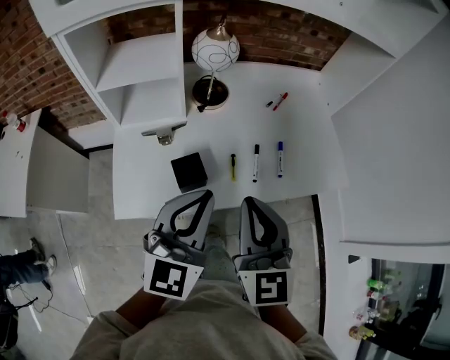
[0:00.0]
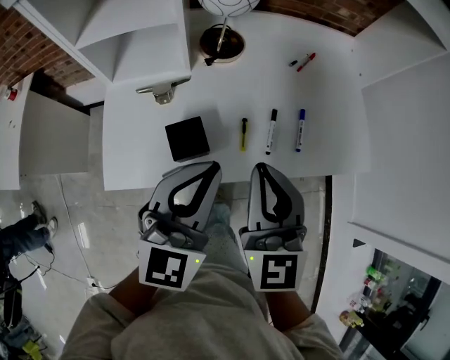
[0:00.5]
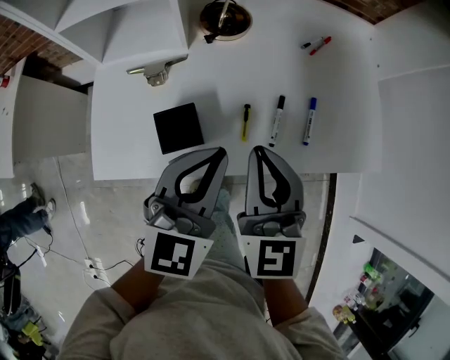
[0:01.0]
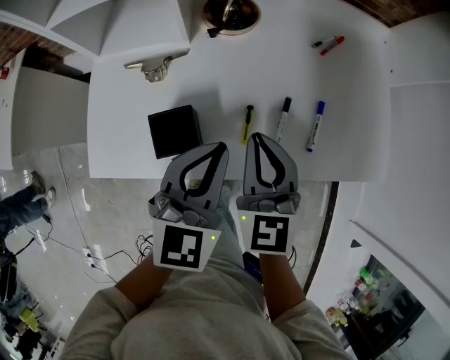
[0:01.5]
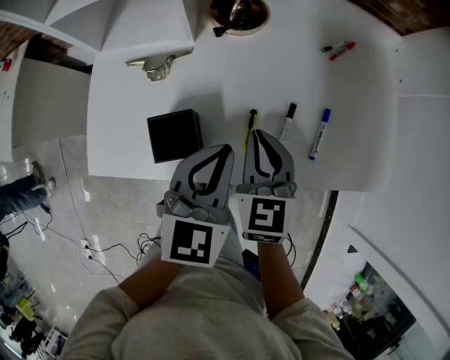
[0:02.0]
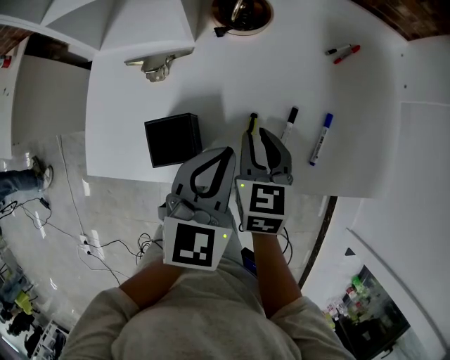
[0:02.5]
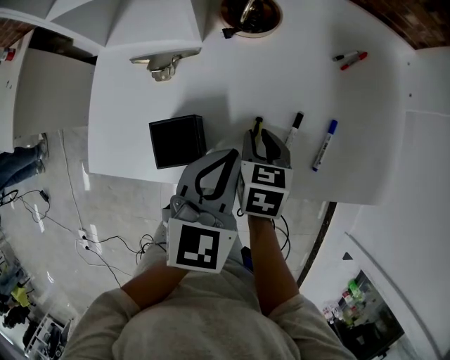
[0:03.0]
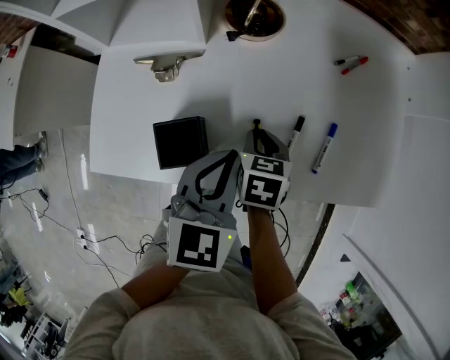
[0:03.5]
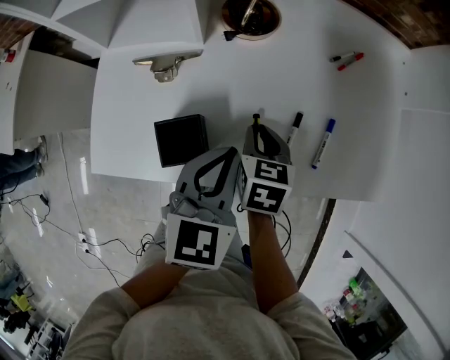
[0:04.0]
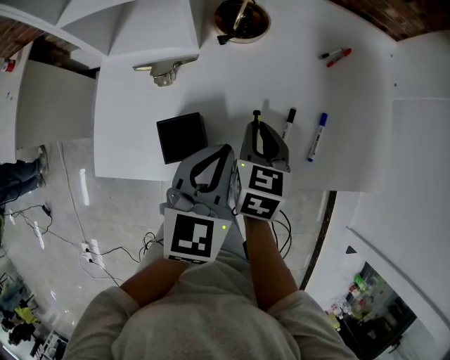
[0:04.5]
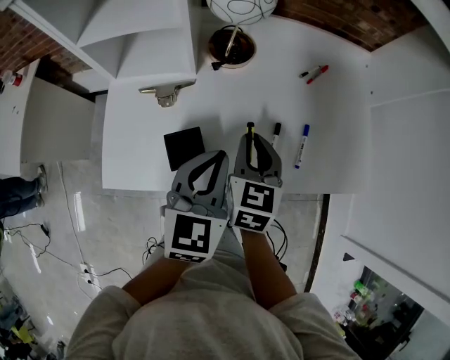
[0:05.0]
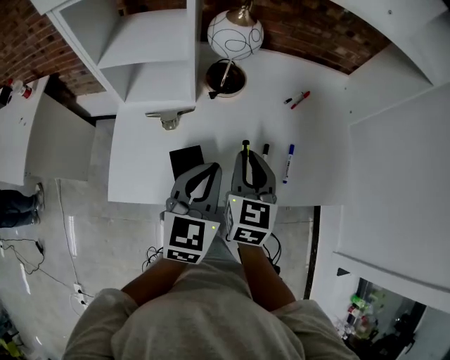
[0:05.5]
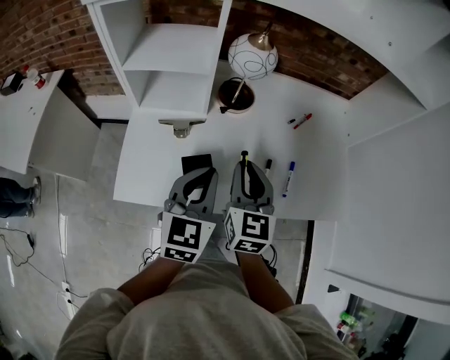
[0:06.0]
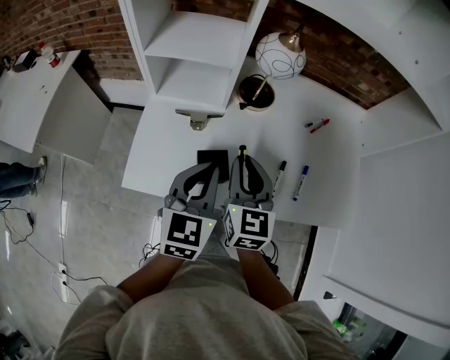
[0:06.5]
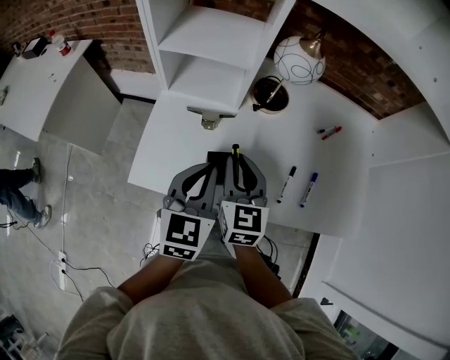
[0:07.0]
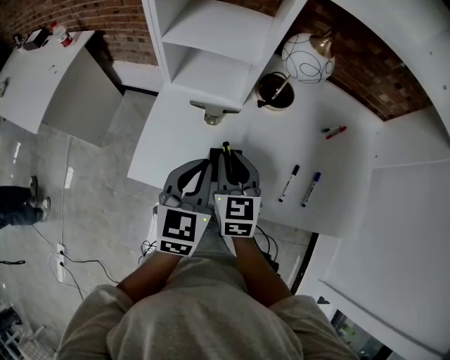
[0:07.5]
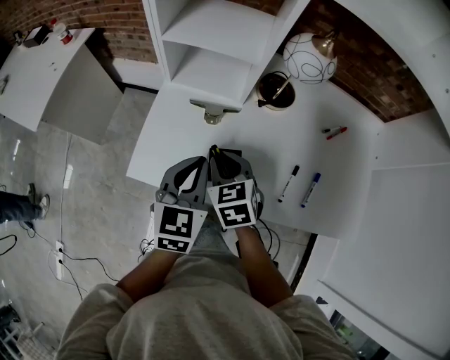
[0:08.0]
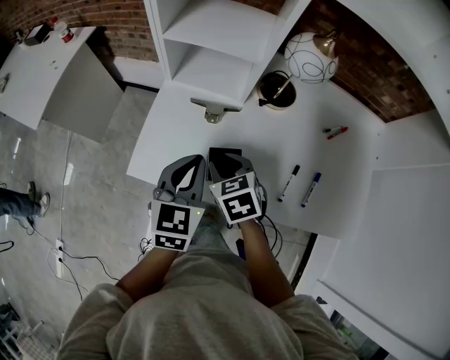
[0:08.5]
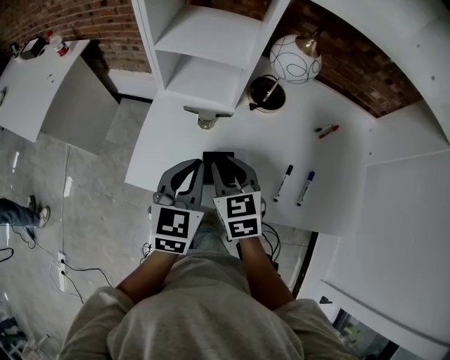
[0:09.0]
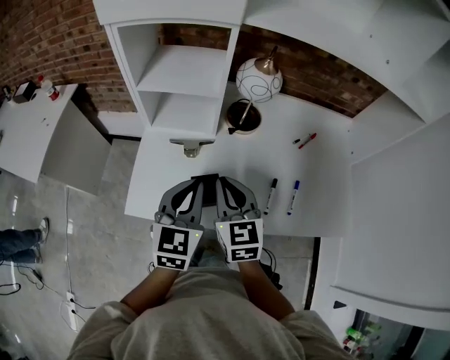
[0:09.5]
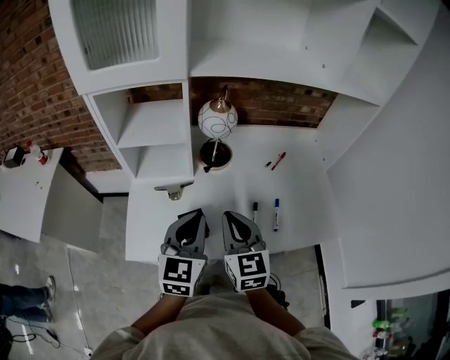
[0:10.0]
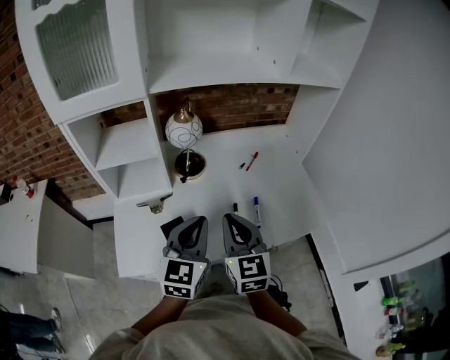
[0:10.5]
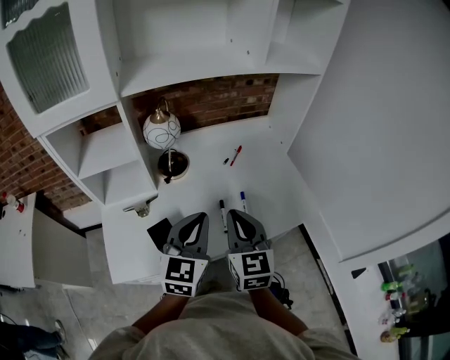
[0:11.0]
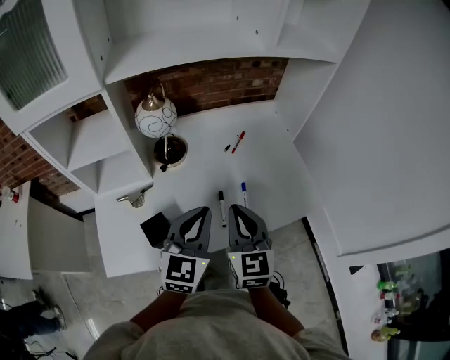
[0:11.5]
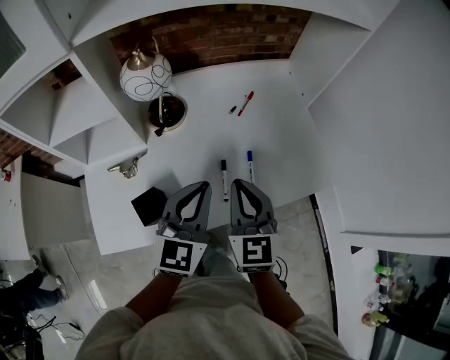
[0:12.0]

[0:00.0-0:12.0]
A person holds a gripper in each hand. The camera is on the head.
0:00.0 to 0:02.0: The grippers both shift downward and forward by roughly 25 cm. The left gripper changes its angle by about 30 degrees; the right gripper rotates about 30 degrees.
0:02.0 to 0:04.0: The right gripper goes some 5 cm downward, and rotates approximately 30 degrees.
0:04.0 to 0:06.0: The right gripper travels upward by roughly 20 cm, and points its fingers roughly 30 degrees further upward. The left gripper travels upward and to the left by some 15 cm.
0:06.0 to 0:08.0: The left gripper goes about 10 cm to the left; the right gripper heads to the left and downward, covering approximately 20 cm, and swivels roughly 40 degrees.
0:08.0 to 0:10.0: The left gripper shifts about 10 cm upward, and turns by roughly 20 degrees, while the right gripper heads upward, covering approximately 15 cm, and angles its fingers upward, by about 30 degrees.
0:10.0 to 0:12.0: The grippers both shift to the right and forward by approximately 15 cm.

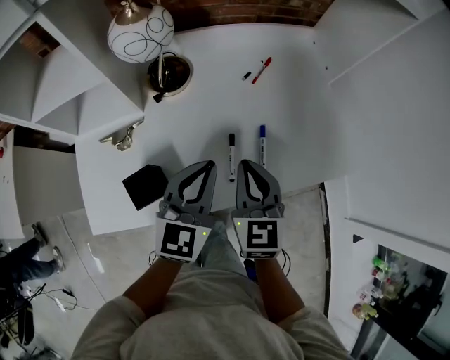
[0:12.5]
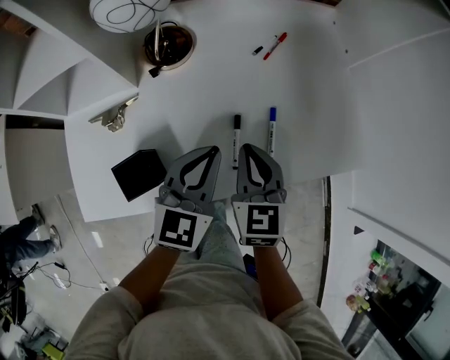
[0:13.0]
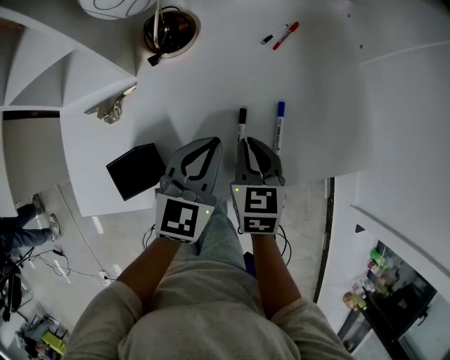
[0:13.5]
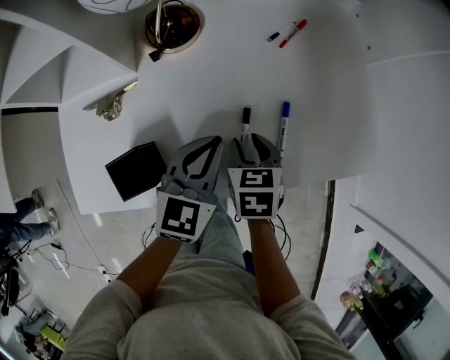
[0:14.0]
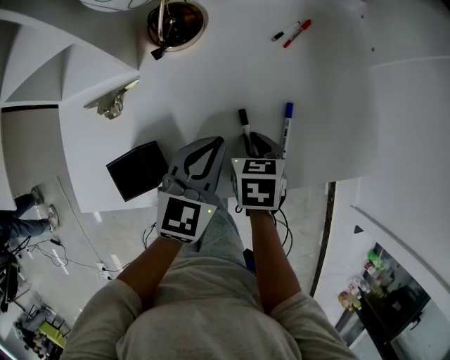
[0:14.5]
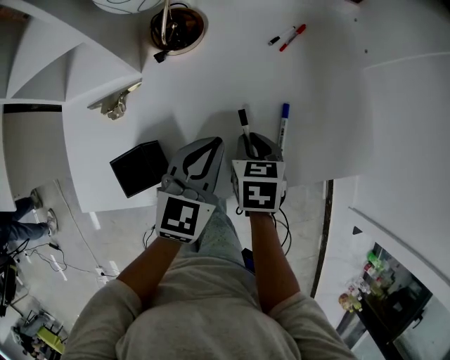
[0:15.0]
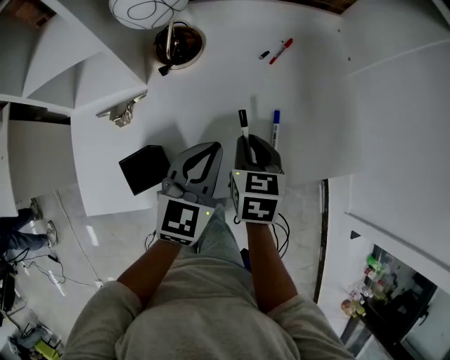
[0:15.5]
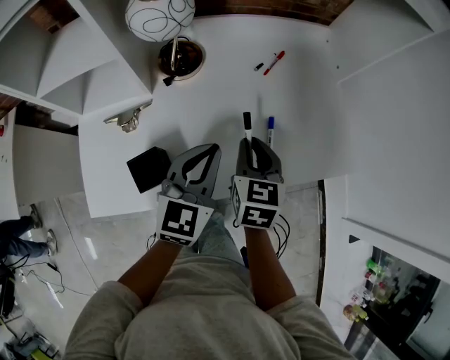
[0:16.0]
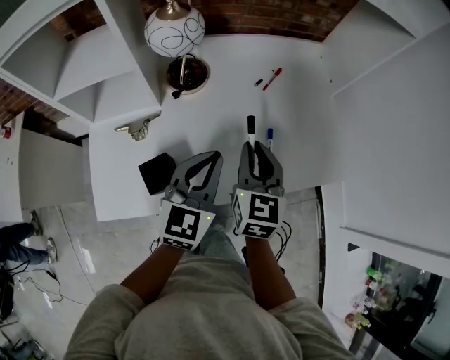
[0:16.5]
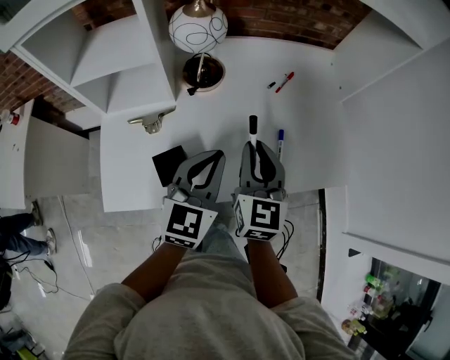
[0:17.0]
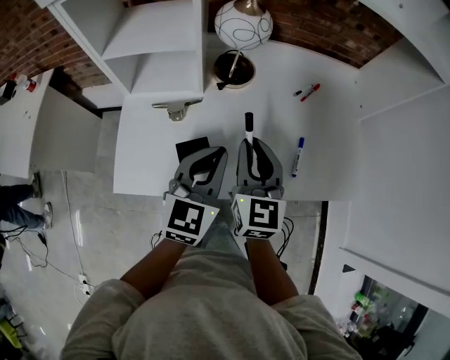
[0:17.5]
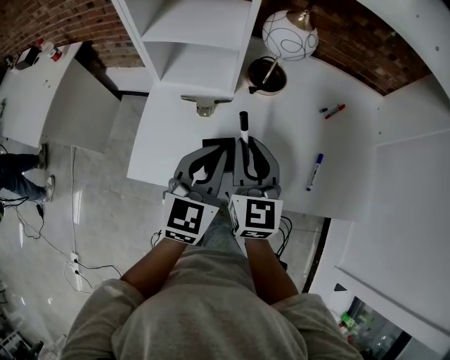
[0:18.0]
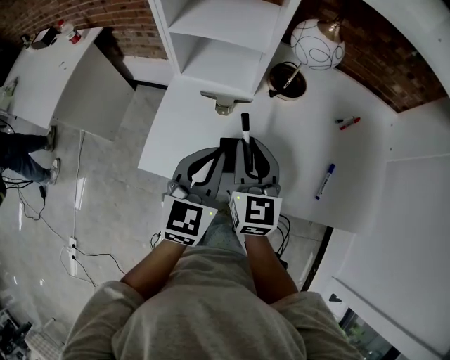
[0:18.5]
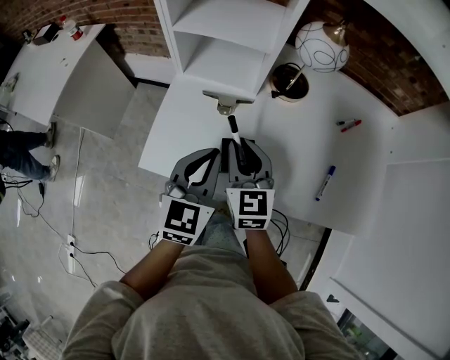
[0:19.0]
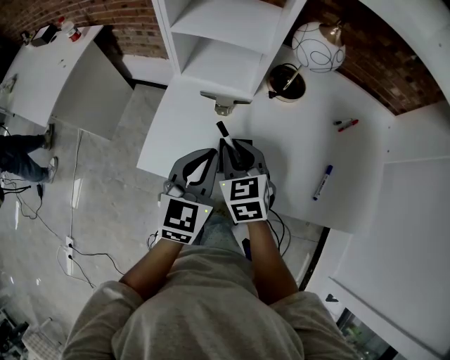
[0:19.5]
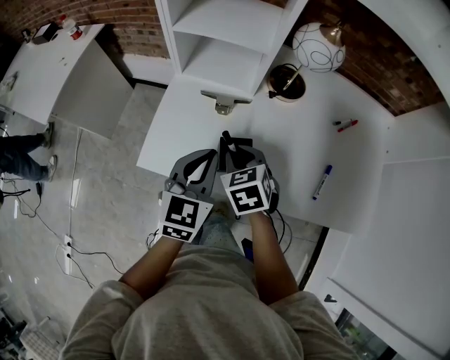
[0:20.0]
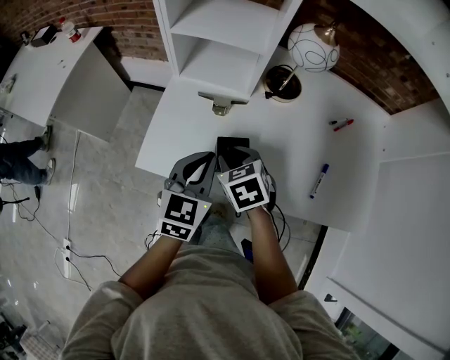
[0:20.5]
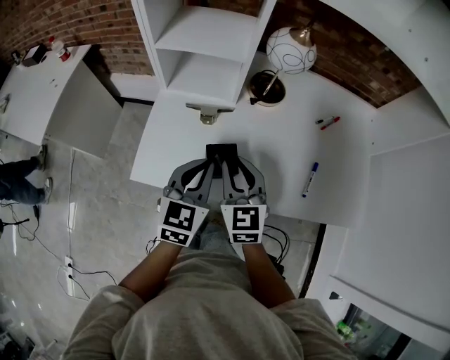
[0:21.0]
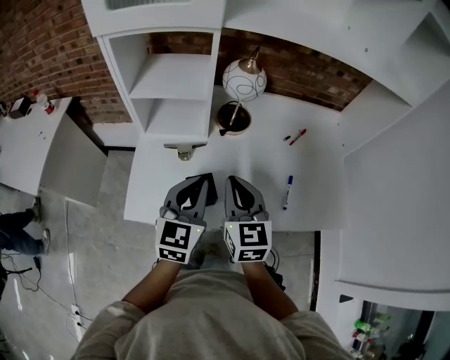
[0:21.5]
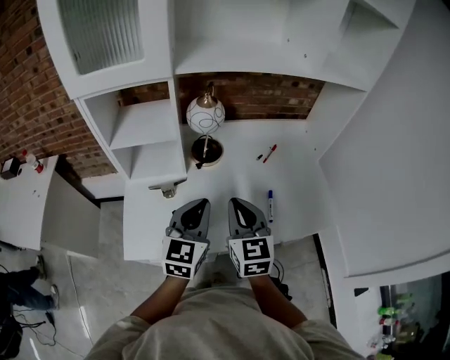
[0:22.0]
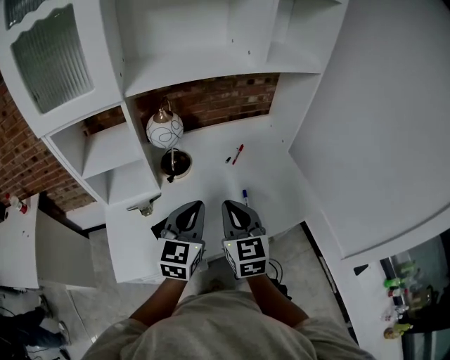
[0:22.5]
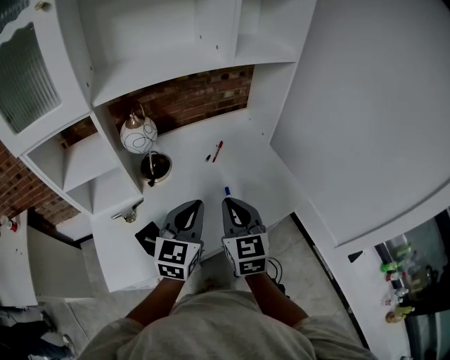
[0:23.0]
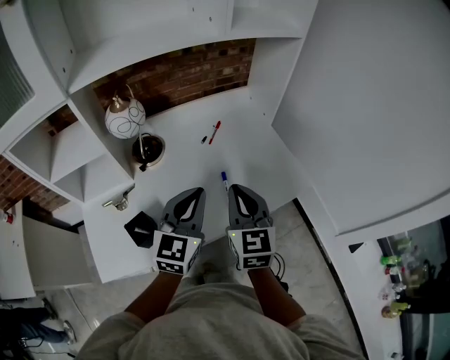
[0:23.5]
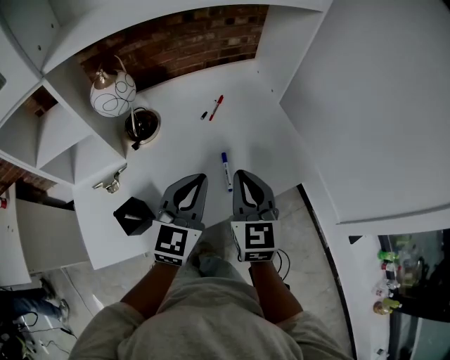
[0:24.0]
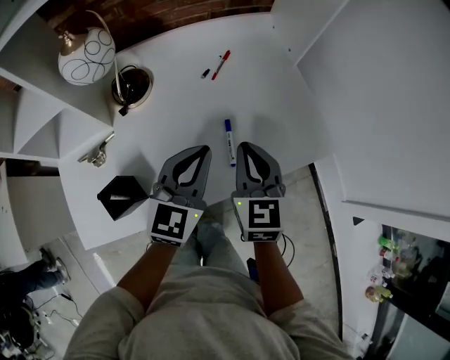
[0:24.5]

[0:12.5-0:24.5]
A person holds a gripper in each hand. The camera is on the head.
0:12.5 to 0:14.5: The left gripper heads downward, covering roughly 10 cm; the right gripper goes roughly 20 cm downward, and points its fingers roughly 40 degrees further downward.
0:14.5 to 0:16.5: The left gripper goes some 15 cm upward, while the right gripper is displaced upward by about 20 cm, and angles its fingers upward, by about 40 degrees.
0:16.5 to 0:18.5: The left gripper shifts by about 20 cm, and rotates roughly 30 degrees; the right gripper changes place by some 25 cm, and rotates approximately 30 degrees.
0:18.5 to 0:20.5: The right gripper travels downward by approximately 10 cm, and tilts its fingers approximately 40 degrees downward.
0:20.5 to 0:22.5: The left gripper changes place by approximately 25 cm, and turns by about 30 degrees. The right gripper shifts by approximately 30 cm, tilts its fingers about 40 degrees upward, and closes up.
0:22.5 to 0:24.5: Both grippers travel together downward, to the right and forward, roughly 20 cm.

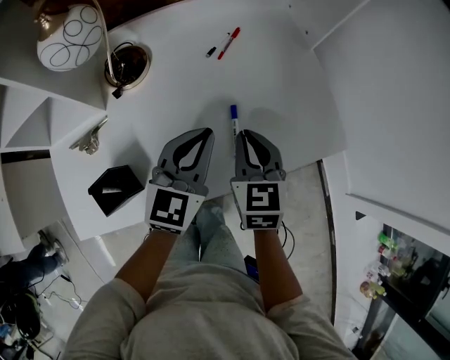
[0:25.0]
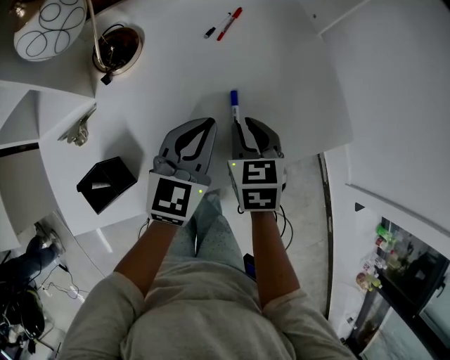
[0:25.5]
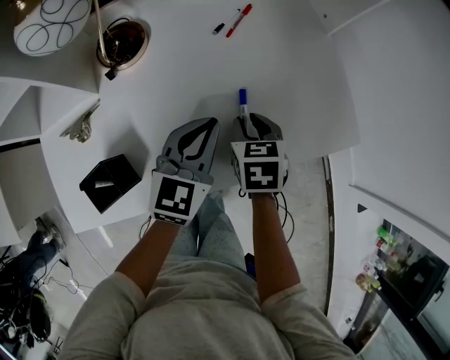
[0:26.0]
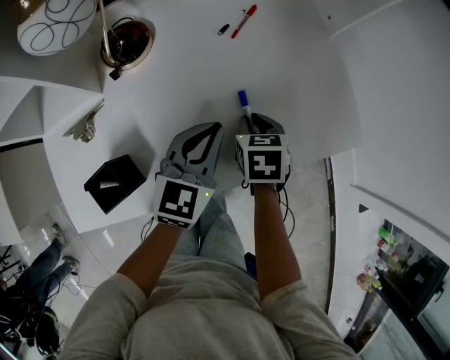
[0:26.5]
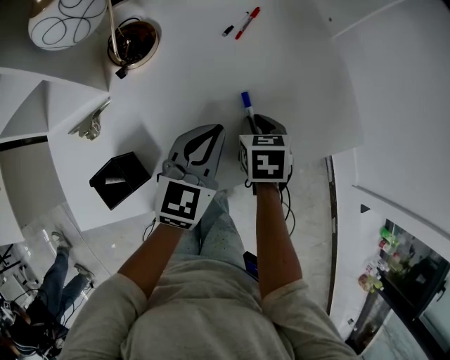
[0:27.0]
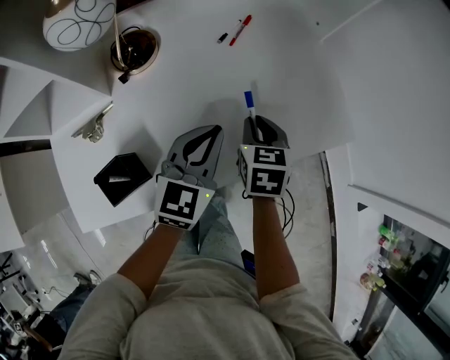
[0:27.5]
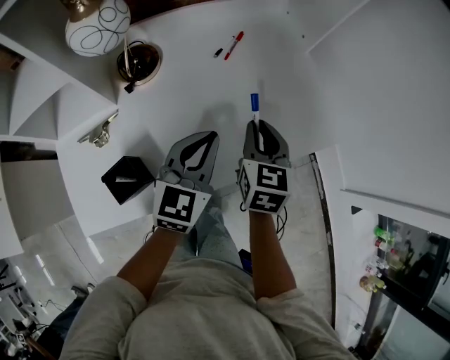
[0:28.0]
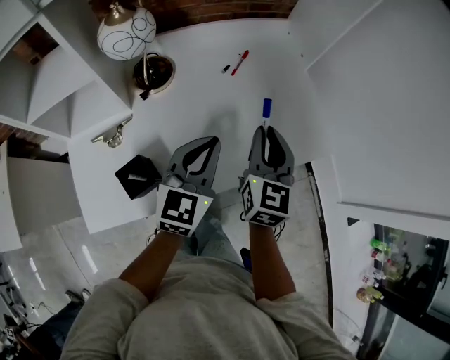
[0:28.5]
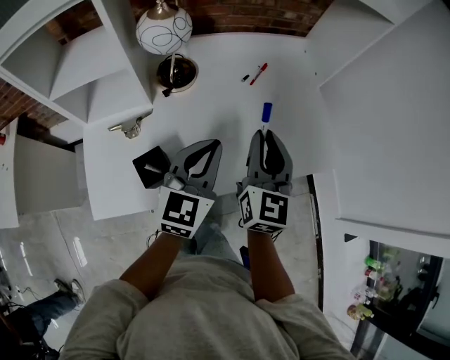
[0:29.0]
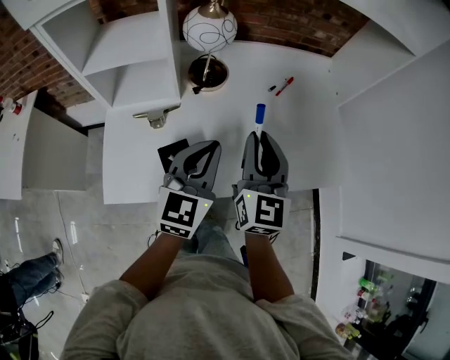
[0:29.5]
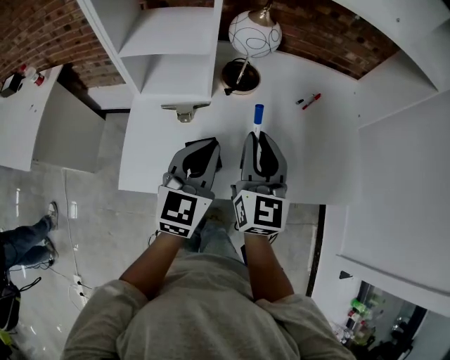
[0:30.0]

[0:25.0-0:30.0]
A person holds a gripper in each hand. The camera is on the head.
0:25.0 to 0:27.5: The right gripper shifts approximately 5 cm downward.
0:27.5 to 0:30.0: The right gripper moves about 35 cm, and tilts its fingers roughly 40 degrees upward. The left gripper shifts by some 25 cm, and rotates about 30 degrees.
